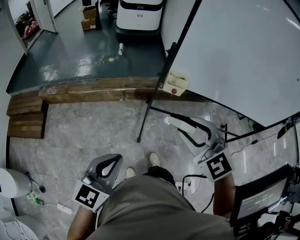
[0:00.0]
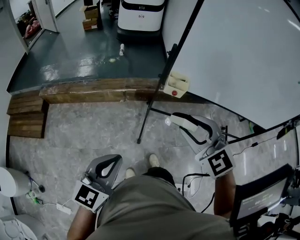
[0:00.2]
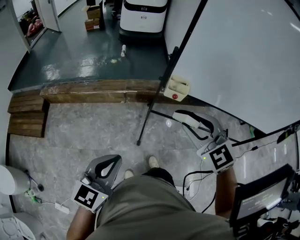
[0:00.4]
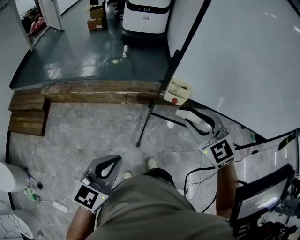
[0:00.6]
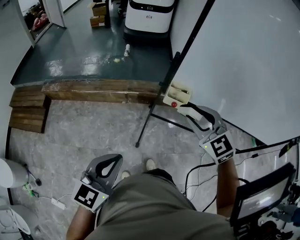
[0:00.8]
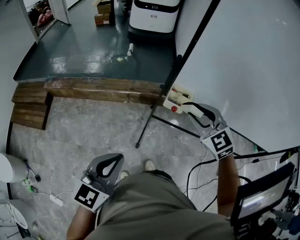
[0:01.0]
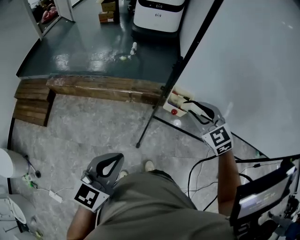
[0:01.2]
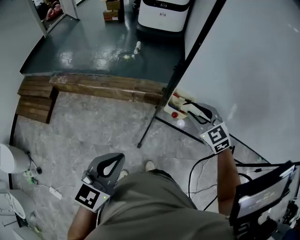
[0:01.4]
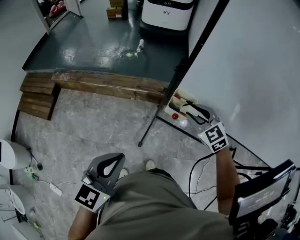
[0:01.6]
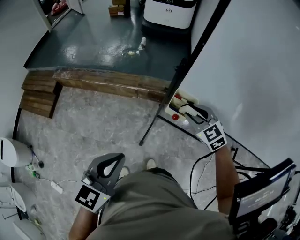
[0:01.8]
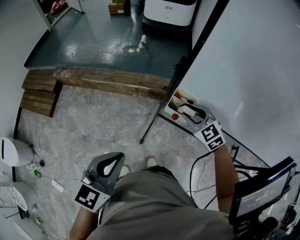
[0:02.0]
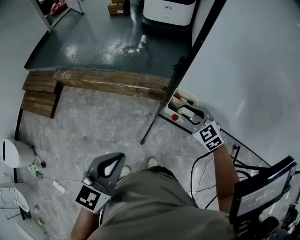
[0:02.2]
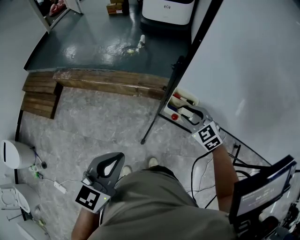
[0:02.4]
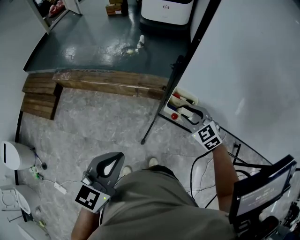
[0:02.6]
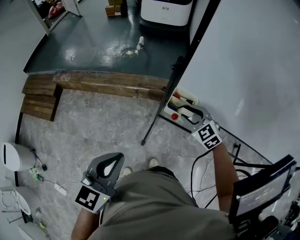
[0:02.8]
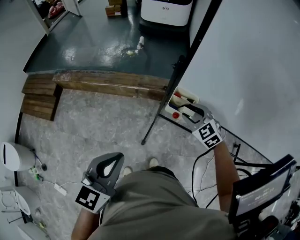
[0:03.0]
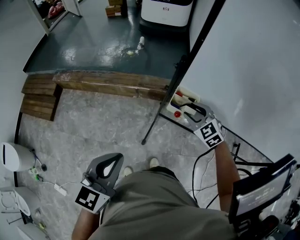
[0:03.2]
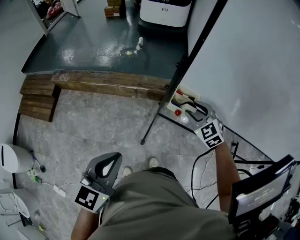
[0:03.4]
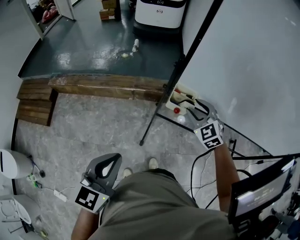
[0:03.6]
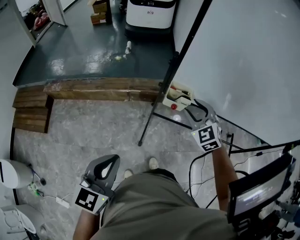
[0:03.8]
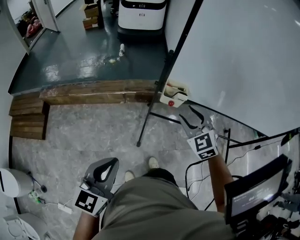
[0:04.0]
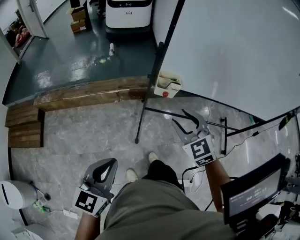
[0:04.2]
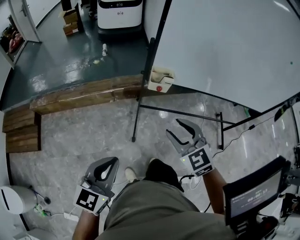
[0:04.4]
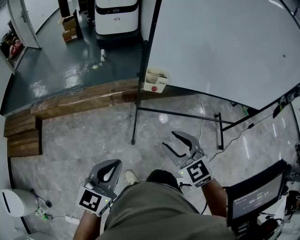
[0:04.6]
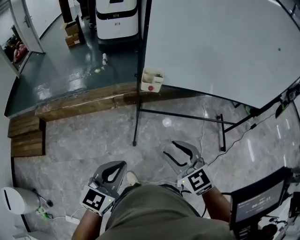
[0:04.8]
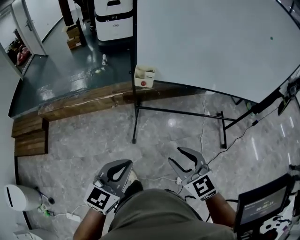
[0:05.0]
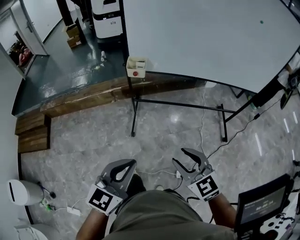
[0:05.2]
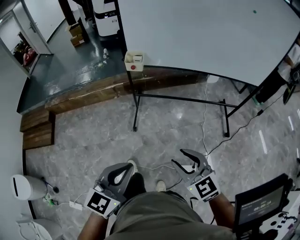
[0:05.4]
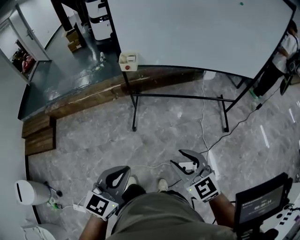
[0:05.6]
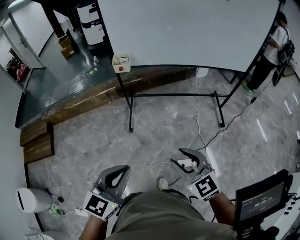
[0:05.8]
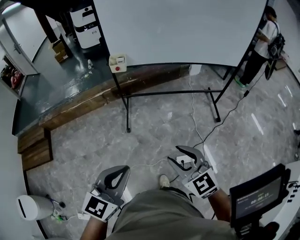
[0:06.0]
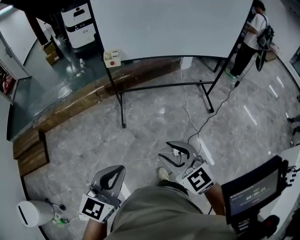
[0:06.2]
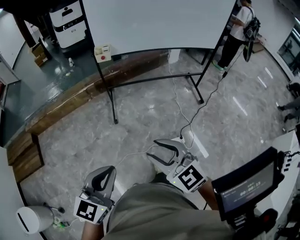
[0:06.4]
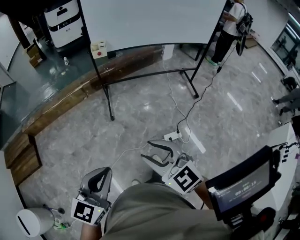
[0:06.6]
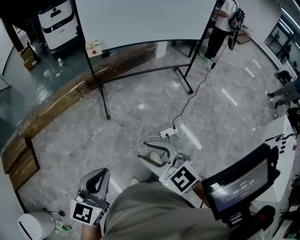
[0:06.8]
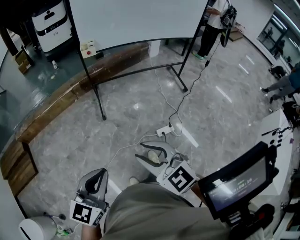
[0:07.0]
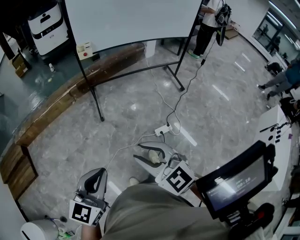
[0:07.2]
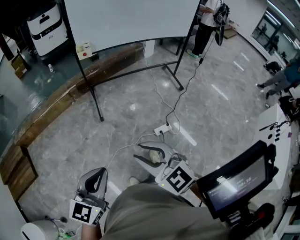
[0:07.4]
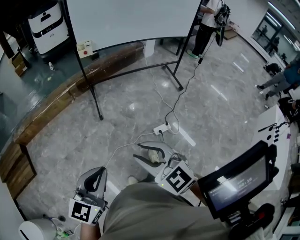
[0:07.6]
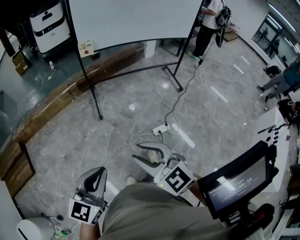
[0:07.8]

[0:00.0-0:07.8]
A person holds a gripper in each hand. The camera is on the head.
0:00.0 to 0:01.6: The right gripper travels forward, downward and to the right by approximately 35 cm. The left gripper is displaced forward and to the right by approximately 15 cm.
0:01.6 to 0:03.2: The right gripper is displaced downward by some 5 cm.
0:03.2 to 0:04.6: The right gripper is displaced backward by about 30 cm, and turns by some 20 degrees. The left gripper shifts about 15 cm backward.
0:04.6 to 0:06.2: The left gripper is displaced backward and to the right by some 35 cm; the right gripper shifts some 40 cm backward.
0:06.2 to 0:07.8: The grippers both shift backward and to the left by some 20 cm.

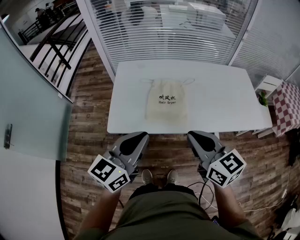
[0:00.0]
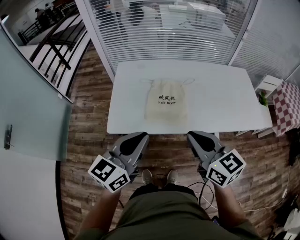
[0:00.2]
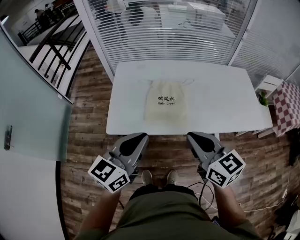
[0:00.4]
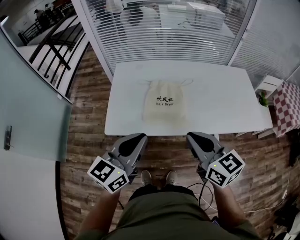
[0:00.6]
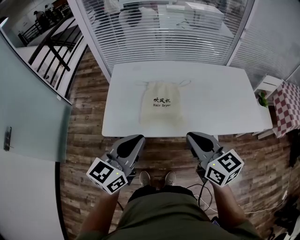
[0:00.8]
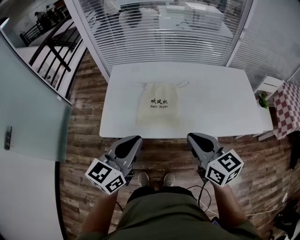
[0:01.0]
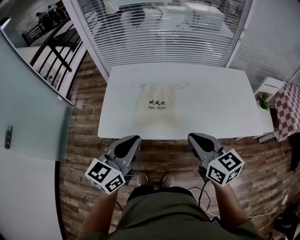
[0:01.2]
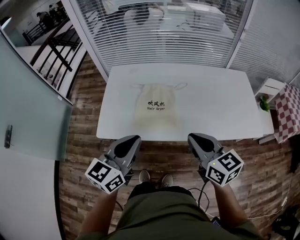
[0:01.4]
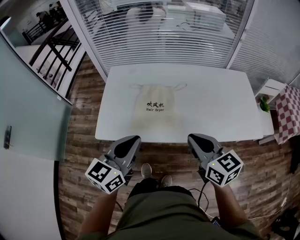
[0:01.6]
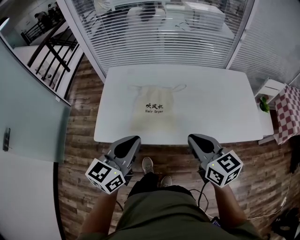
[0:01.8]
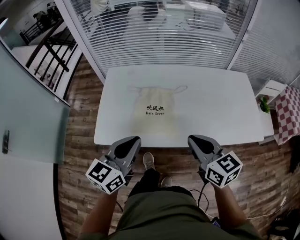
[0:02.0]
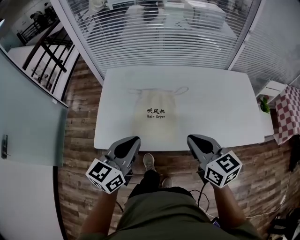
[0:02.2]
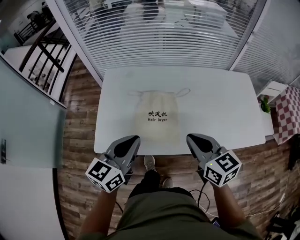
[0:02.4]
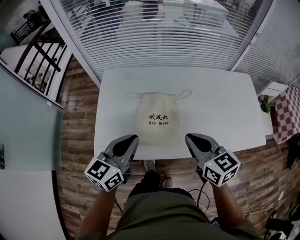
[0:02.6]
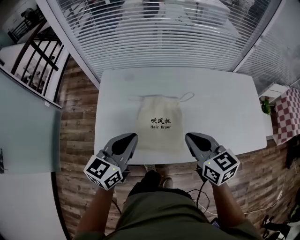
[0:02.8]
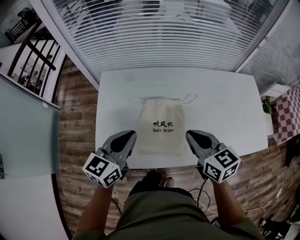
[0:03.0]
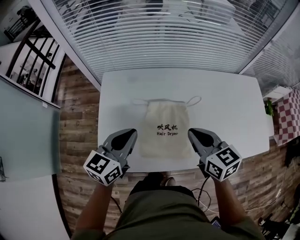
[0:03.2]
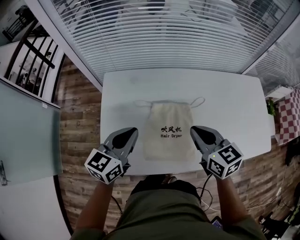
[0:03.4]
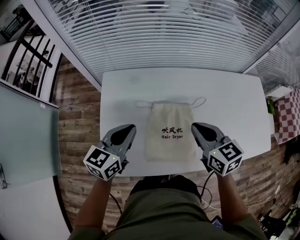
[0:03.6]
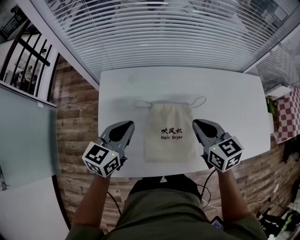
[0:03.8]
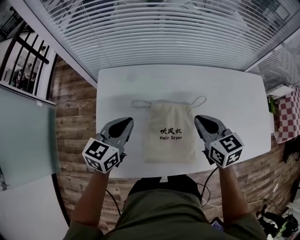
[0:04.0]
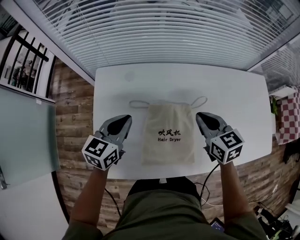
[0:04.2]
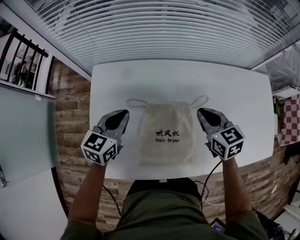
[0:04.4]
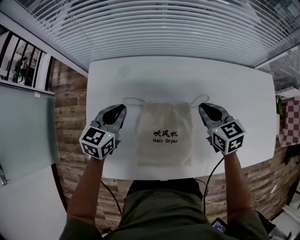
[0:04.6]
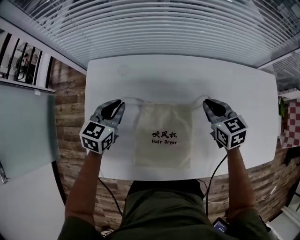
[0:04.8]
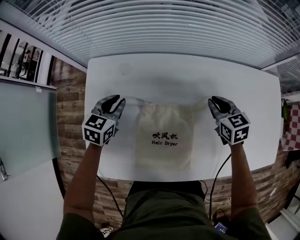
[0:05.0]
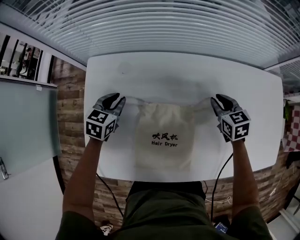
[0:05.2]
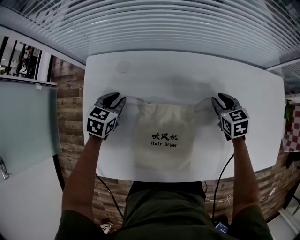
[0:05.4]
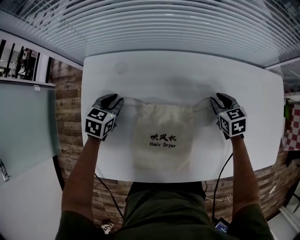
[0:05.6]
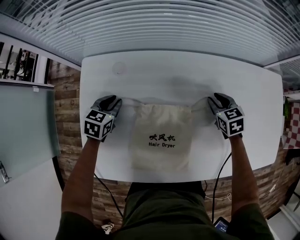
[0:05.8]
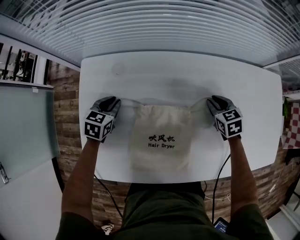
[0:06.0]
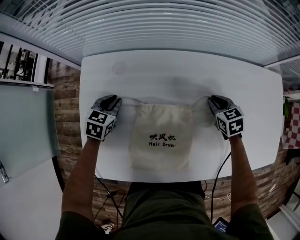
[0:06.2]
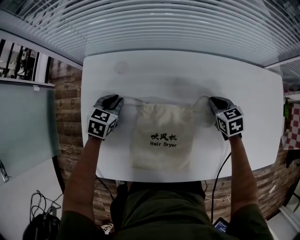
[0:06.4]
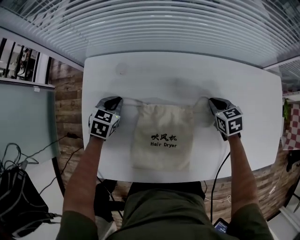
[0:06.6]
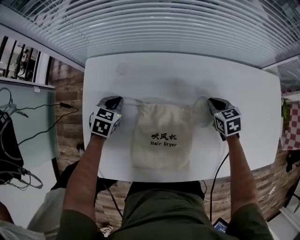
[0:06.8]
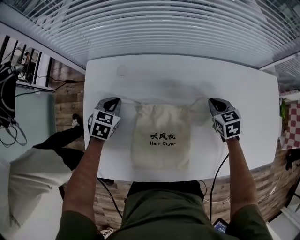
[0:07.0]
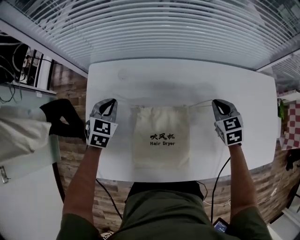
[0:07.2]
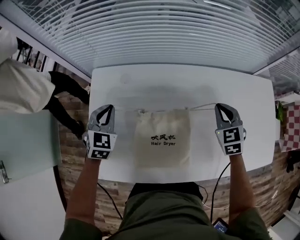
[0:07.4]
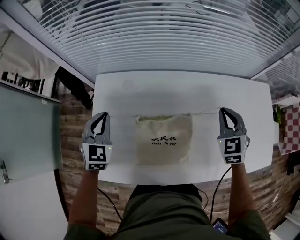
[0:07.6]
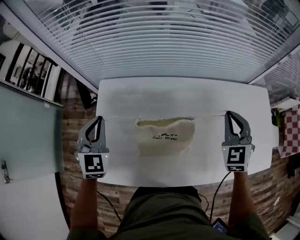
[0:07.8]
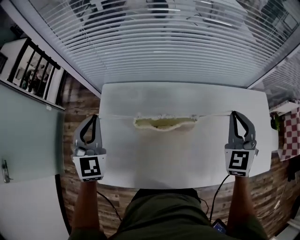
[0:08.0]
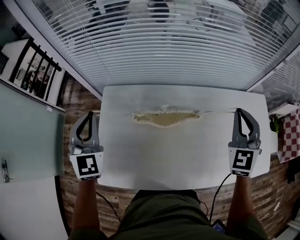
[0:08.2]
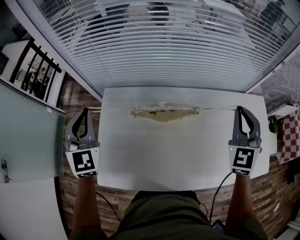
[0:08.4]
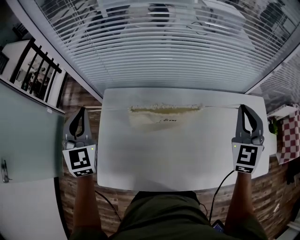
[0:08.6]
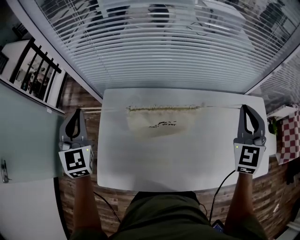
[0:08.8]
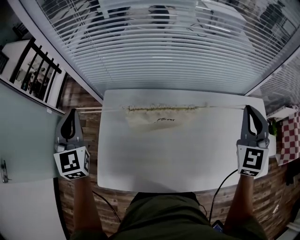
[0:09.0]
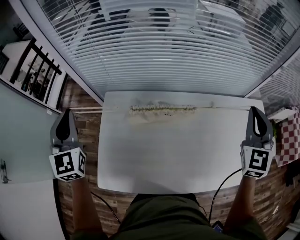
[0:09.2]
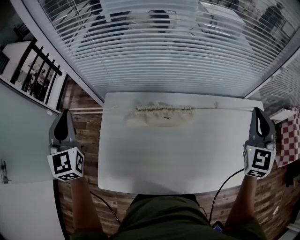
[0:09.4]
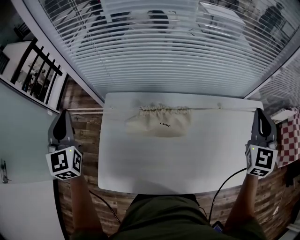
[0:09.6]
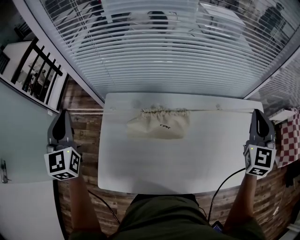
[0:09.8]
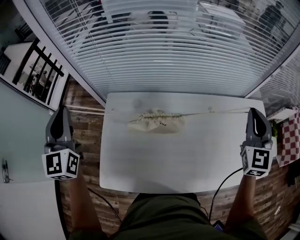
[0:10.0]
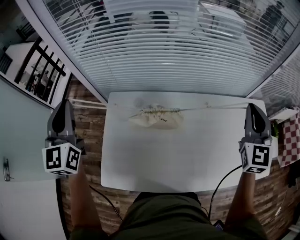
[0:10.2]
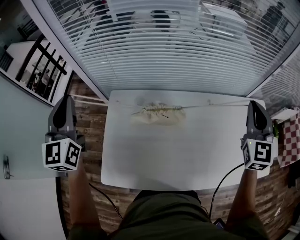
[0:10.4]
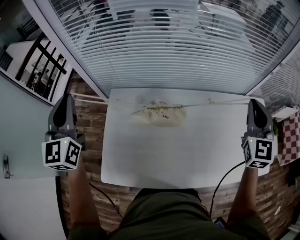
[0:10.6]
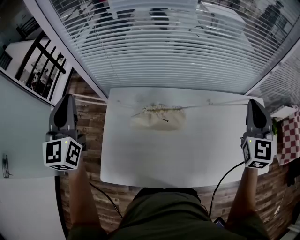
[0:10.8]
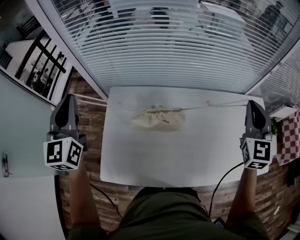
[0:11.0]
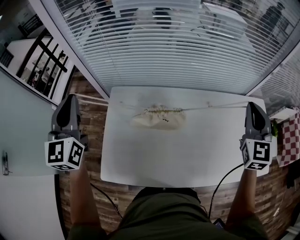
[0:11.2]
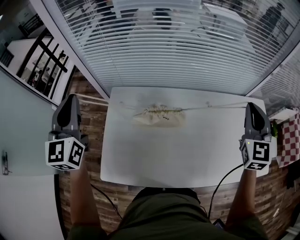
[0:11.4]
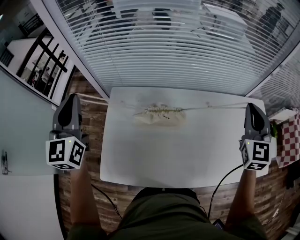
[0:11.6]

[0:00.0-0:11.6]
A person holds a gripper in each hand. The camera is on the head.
0:00.0 to 0:01.4: The left gripper goes about 5 cm to the right. Meanwhile the right gripper heads to the right, covering about 10 cm.
0:01.4 to 0:02.8: The two grippers go approximately 15 cm forward.
0:02.8 to 0:04.4: Both grippers travel together forward and downward, some 25 cm.
0:04.4 to 0:05.8: The right gripper goes approximately 20 cm downward, to the right and forward, and opens its fingers. Meanwhile the left gripper shifts some 15 cm downward and forward, and swivels about 20 degrees.
0:05.8 to 0:07.2: Both grippers move upward, approximately 10 cm. The right gripper closes its fingers, while the left gripper swivels about 20 degrees.
0:07.2 to 0:08.8: Both grippers travel together upward, roughly 30 cm. The left gripper points its fingers roughly 30 degrees further upward. The right gripper tilts its fingers approximately 40 degrees upward.
0:08.8 to 0:10.2: The left gripper shifts about 10 cm upward, and rotates some 20 degrees.
0:10.2 to 0:11.6: The grippers move only a little.

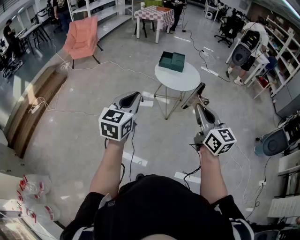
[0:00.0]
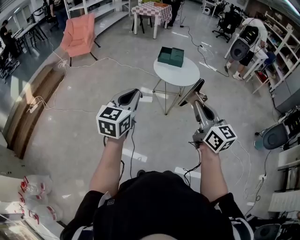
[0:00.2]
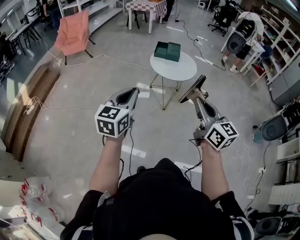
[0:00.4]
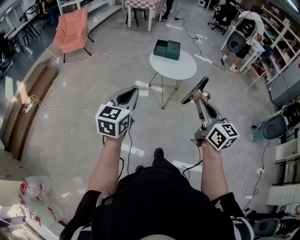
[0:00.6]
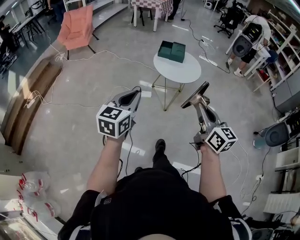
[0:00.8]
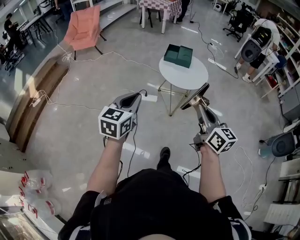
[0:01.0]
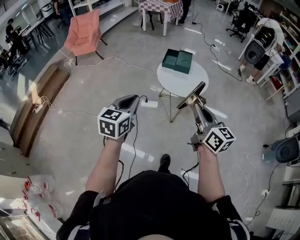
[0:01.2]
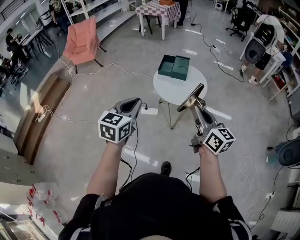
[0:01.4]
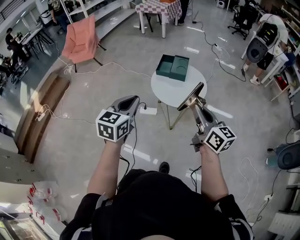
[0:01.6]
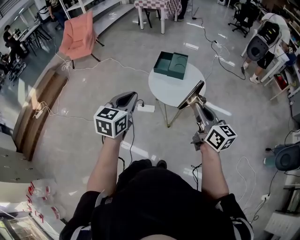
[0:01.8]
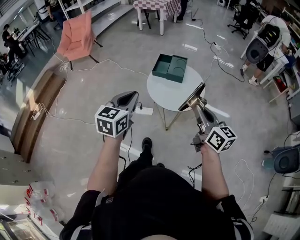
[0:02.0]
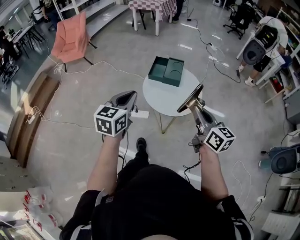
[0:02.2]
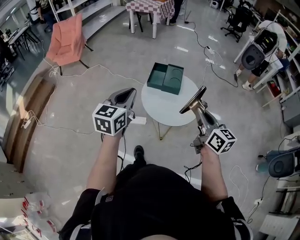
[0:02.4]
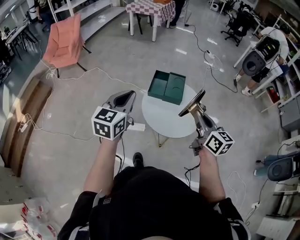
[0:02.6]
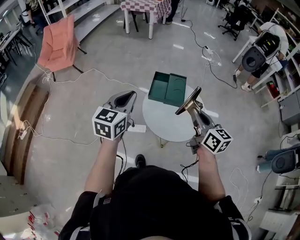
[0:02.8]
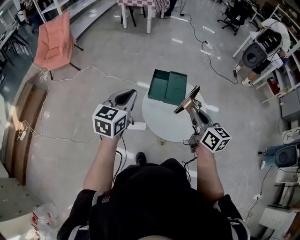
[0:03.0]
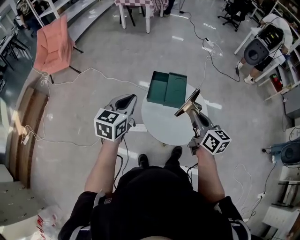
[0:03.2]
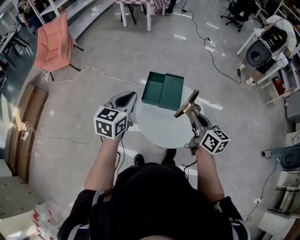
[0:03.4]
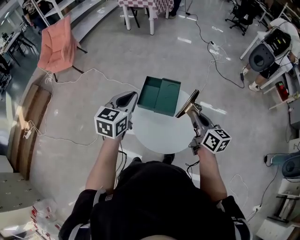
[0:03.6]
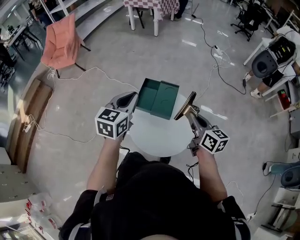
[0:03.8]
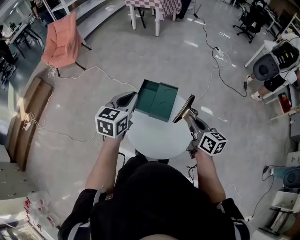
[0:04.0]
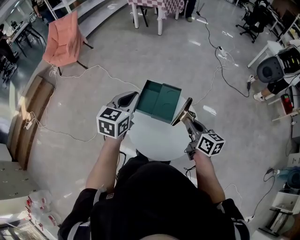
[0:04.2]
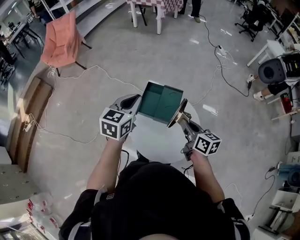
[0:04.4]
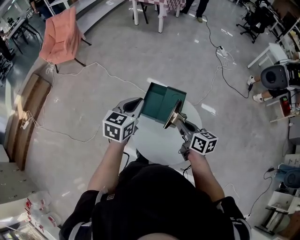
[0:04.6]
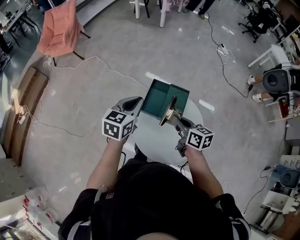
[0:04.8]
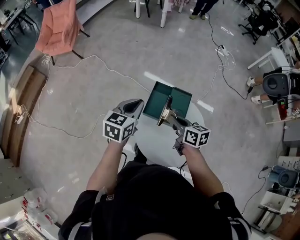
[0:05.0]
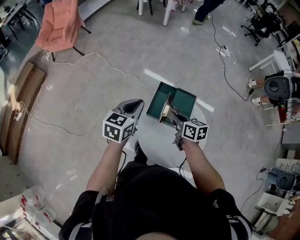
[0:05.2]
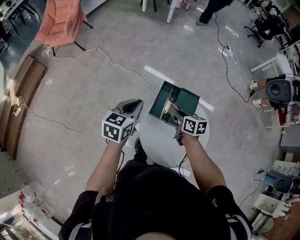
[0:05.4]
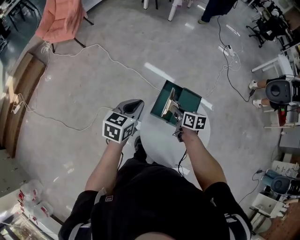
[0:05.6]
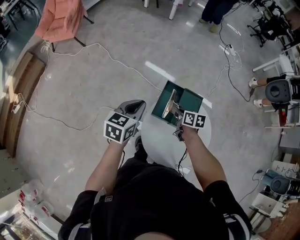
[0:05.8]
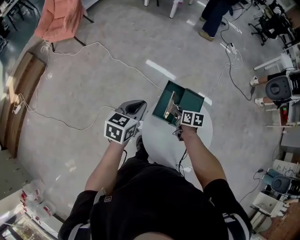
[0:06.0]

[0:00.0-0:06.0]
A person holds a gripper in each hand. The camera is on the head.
0:00.0 to 0:01.6: The grippers both shift forward by some 25 cm.
0:01.6 to 0:03.0: The grippers both shift forward by some 30 cm.
0:03.0 to 0:04.4: The left gripper travels to the right and forward by roughly 15 cm, while the right gripper is displaced forward, downward and to the right by some 15 cm.
0:04.4 to 0:06.0: The right gripper goes some 25 cm downward, forward and to the left, and rotates about 30 degrees; the left gripper goes some 15 cm downward and to the left.
